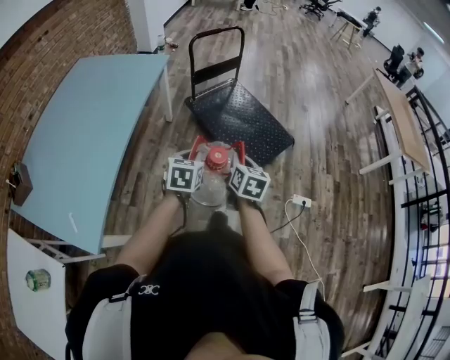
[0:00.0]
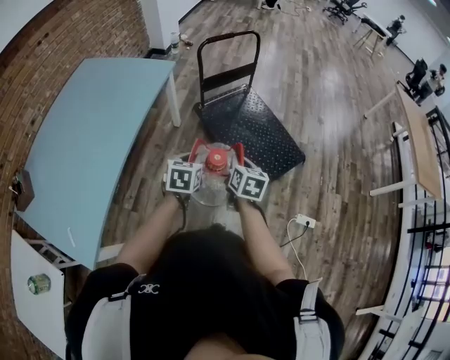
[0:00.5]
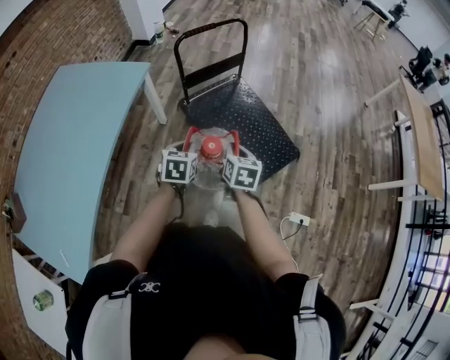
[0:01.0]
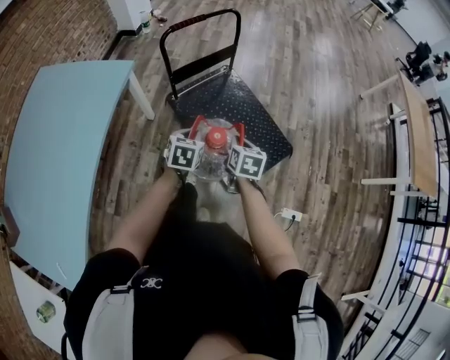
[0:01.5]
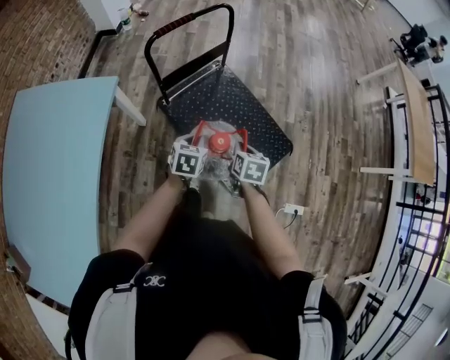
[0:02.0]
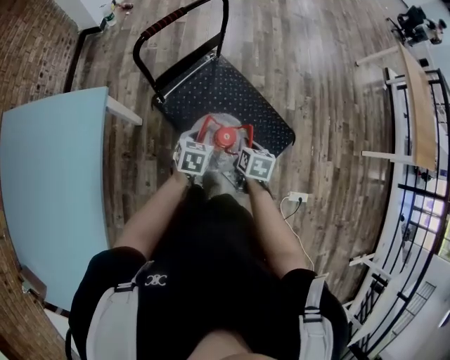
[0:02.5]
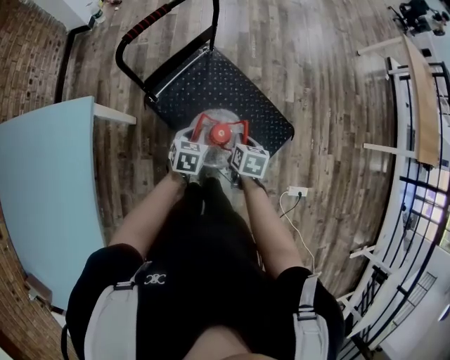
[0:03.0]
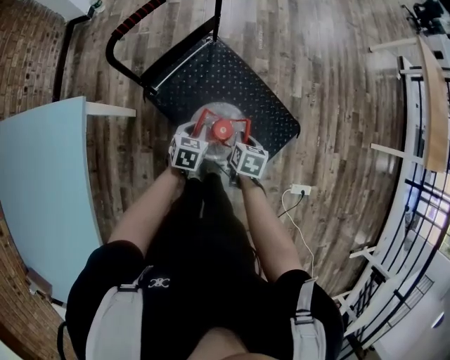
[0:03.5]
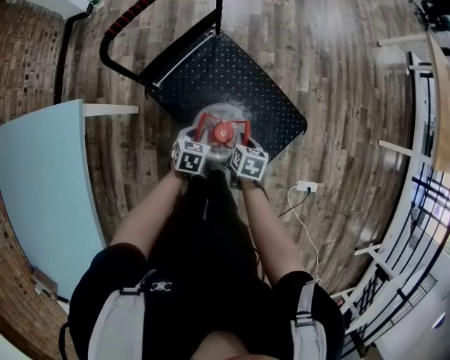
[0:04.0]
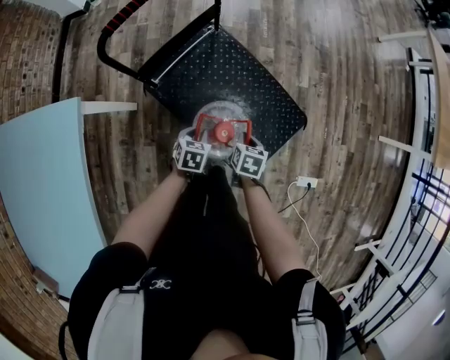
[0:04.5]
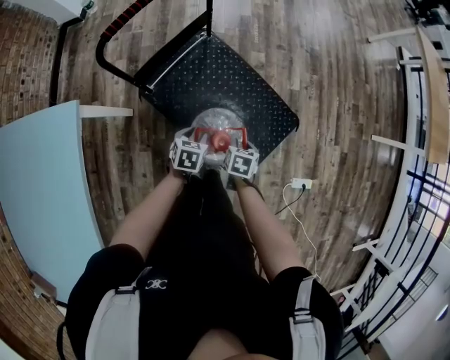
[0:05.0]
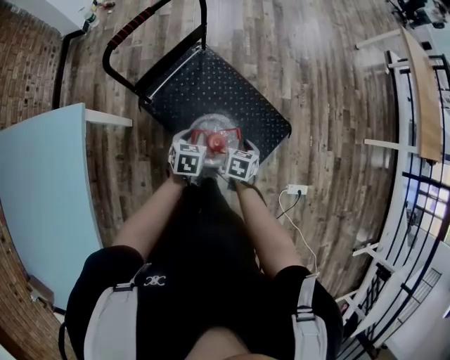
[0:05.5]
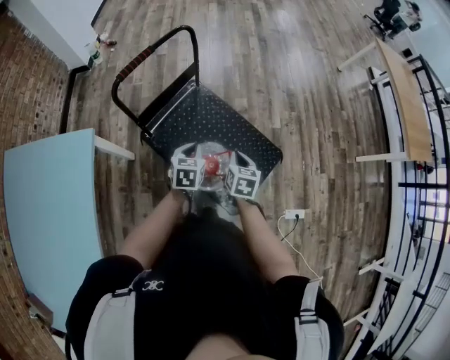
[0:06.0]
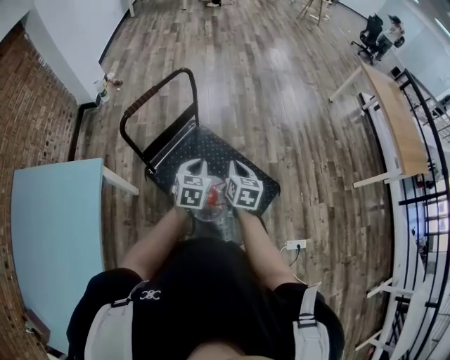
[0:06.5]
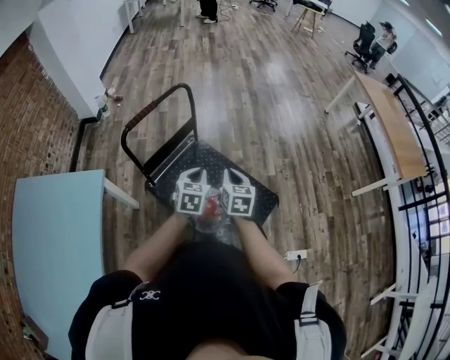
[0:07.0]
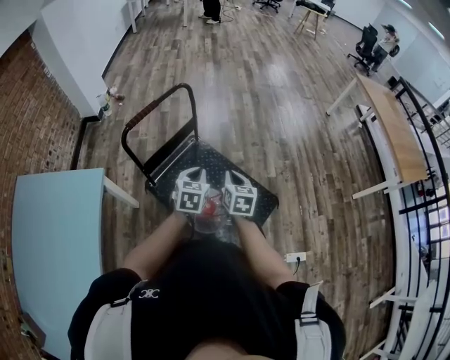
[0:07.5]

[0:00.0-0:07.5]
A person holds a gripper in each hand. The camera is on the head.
0:00.0 to 0:02.0: The two grippers travel together, forward, roughly 40 cm. The right gripper swivels roughly 20 degrees.
0:02.0 to 0:04.0: The grippers both shift downward and forward by some 15 cm.
0:04.0 to 0:05.5: The left gripper goes roughly 5 cm upward; the right gripper goes about 5 cm to the right.
0:05.5 to 0:07.5: Both grippers travel together upward, some 20 cm. The left gripper turns by roughly 20 degrees, and closes up. The right gripper changes its angle by approximately 30 degrees.

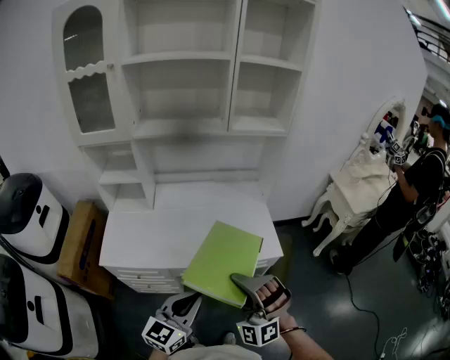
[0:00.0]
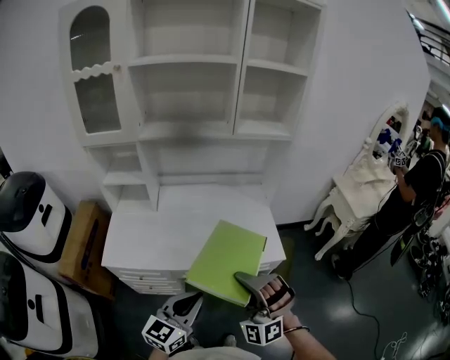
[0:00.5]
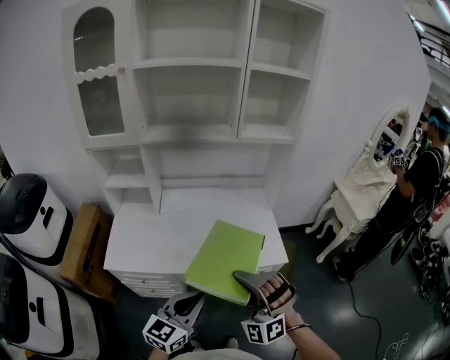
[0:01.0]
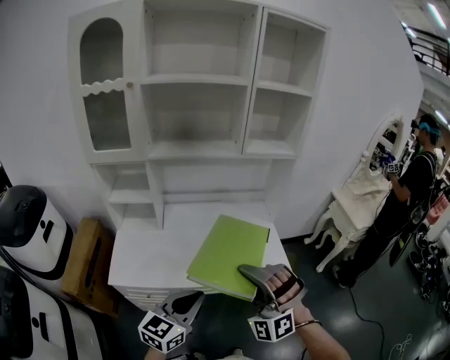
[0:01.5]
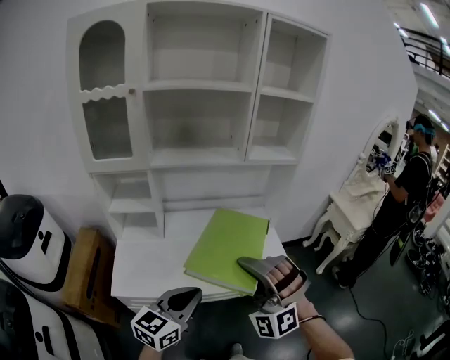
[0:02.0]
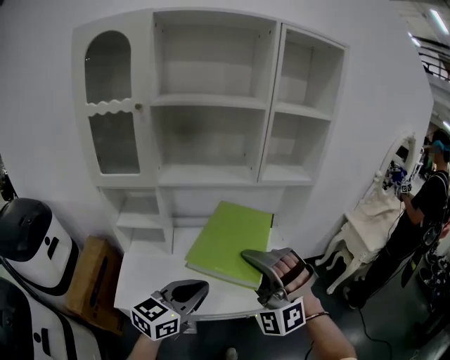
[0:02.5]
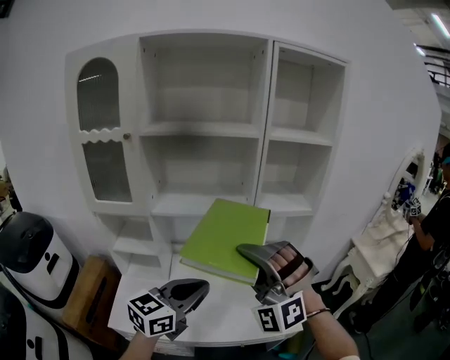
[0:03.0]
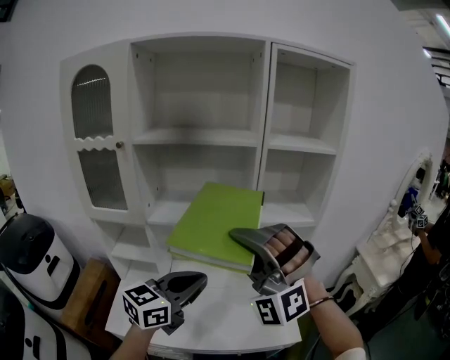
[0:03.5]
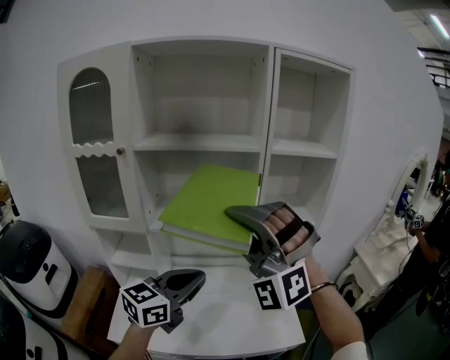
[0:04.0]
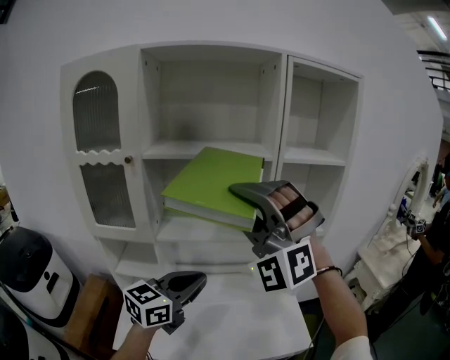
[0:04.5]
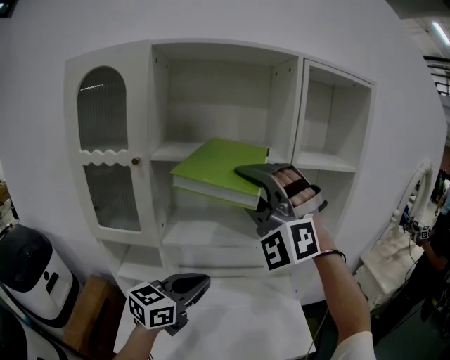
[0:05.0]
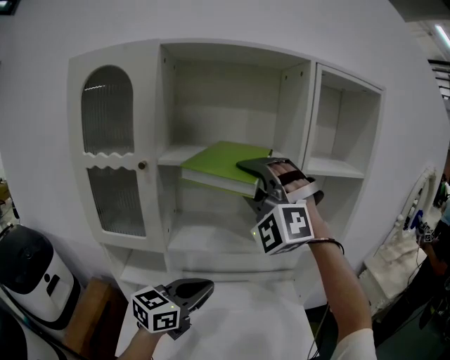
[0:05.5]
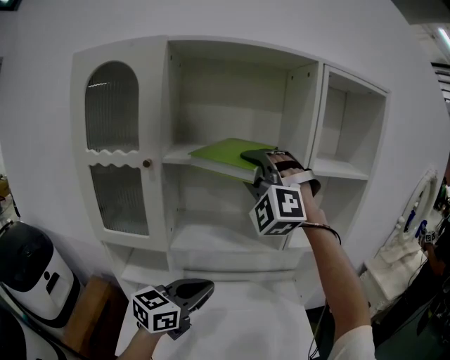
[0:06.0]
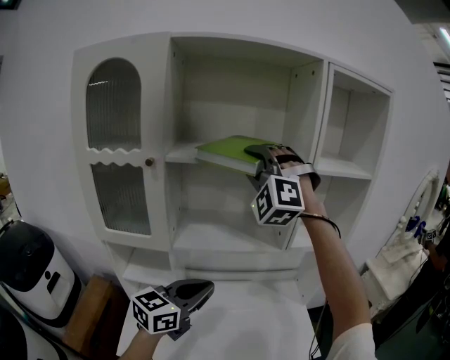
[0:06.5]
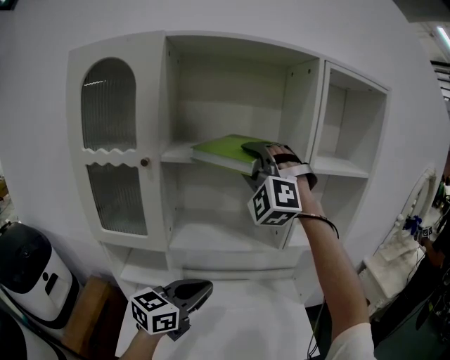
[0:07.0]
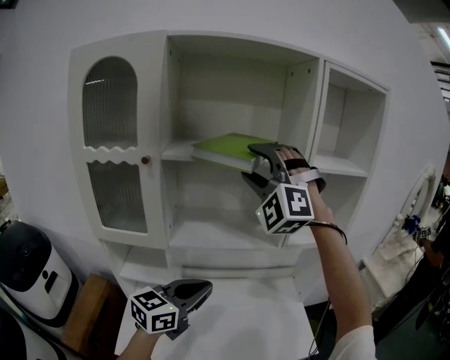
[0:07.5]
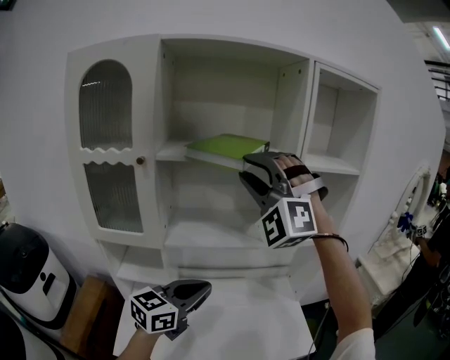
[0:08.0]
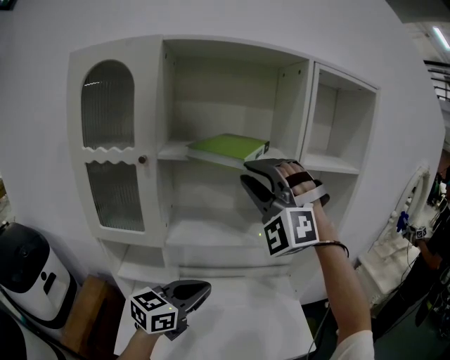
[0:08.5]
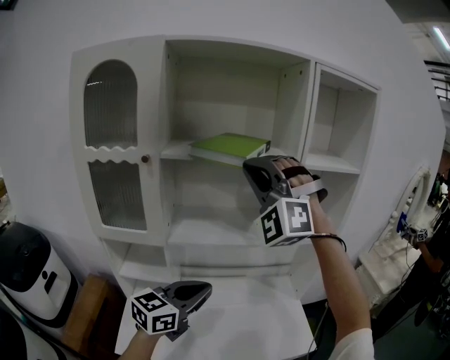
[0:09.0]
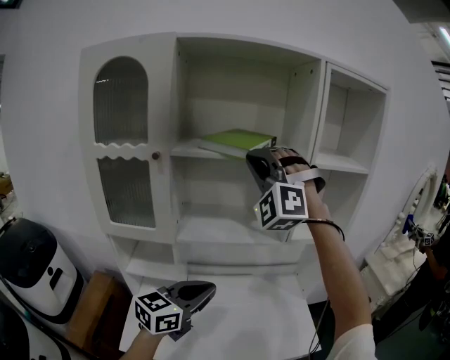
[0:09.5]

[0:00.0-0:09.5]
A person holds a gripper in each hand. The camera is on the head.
0:00.0 to 0:02.0: The left gripper ends up about 15 cm from where it was.
0:02.0 to 0:04.0: The left gripper shifts by about 30 cm.
0:04.0 to 0:05.5: The left gripper ends up approximately 10 cm from where it was.

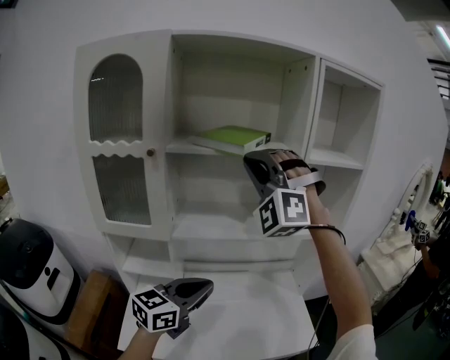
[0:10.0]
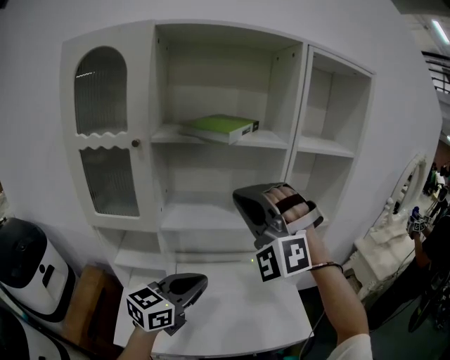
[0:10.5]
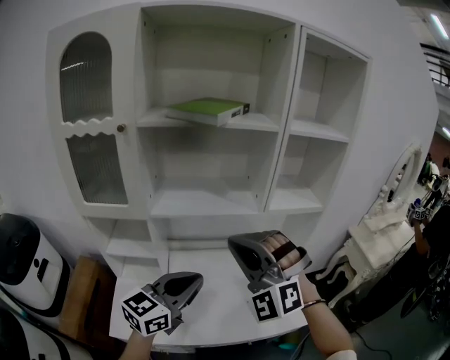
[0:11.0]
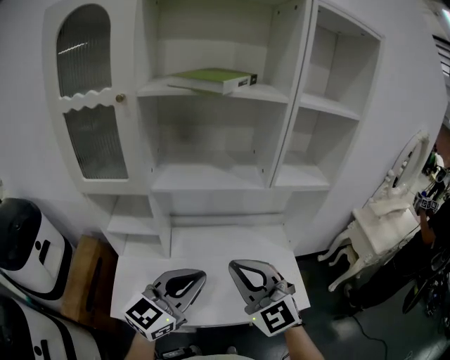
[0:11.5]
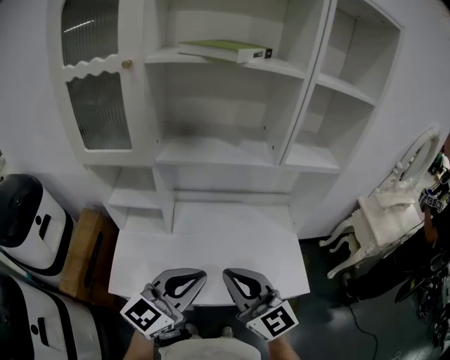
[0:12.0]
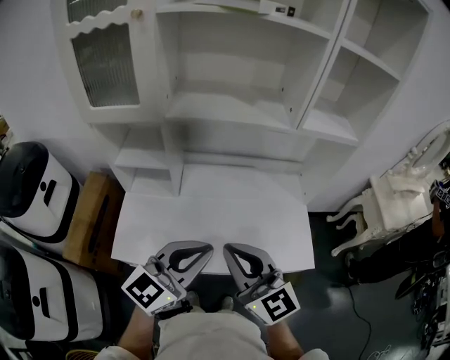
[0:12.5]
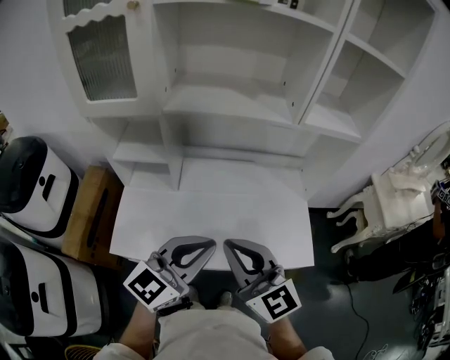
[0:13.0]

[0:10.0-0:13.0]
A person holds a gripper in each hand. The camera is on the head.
0:10.0 to 0:11.5: The left gripper changes place by approximately 10 cm.
0:11.5 to 0:13.0: The left gripper travels downward by roughly 5 cm.

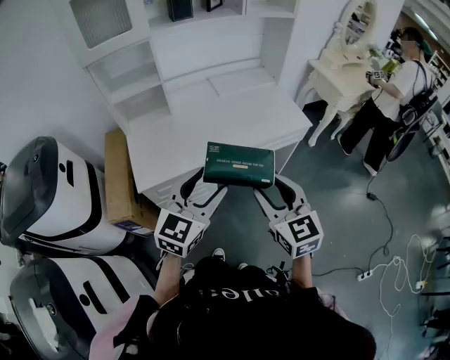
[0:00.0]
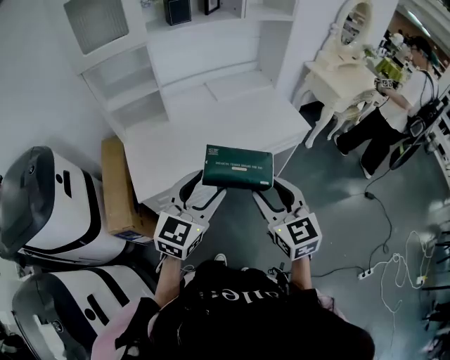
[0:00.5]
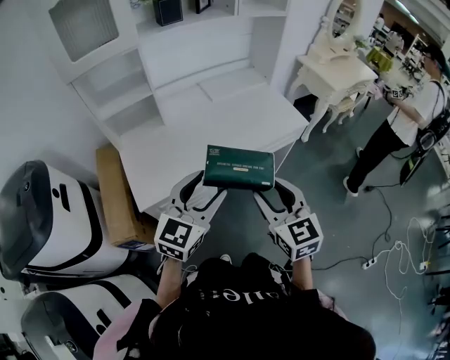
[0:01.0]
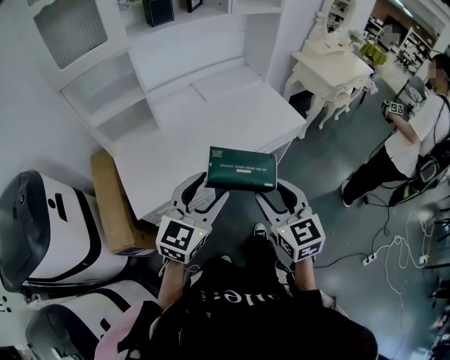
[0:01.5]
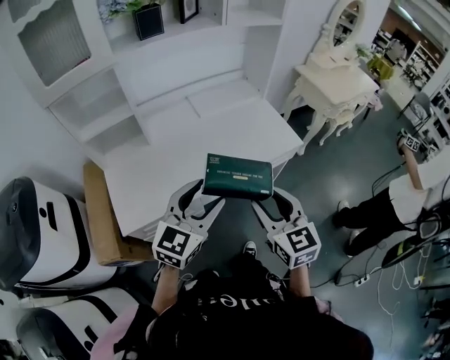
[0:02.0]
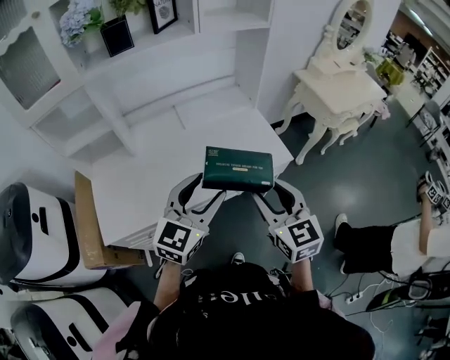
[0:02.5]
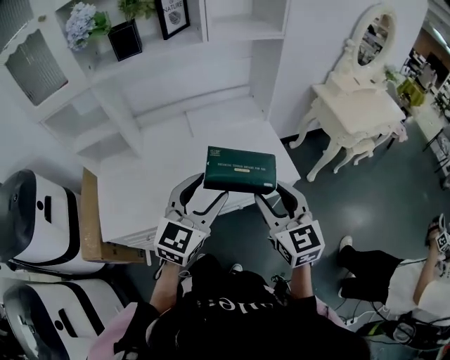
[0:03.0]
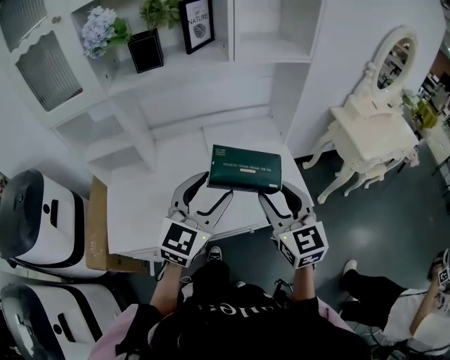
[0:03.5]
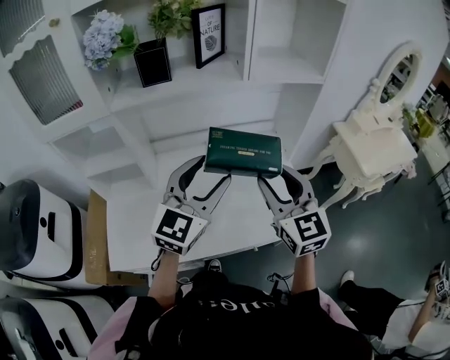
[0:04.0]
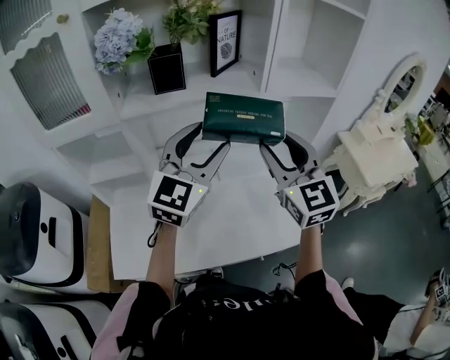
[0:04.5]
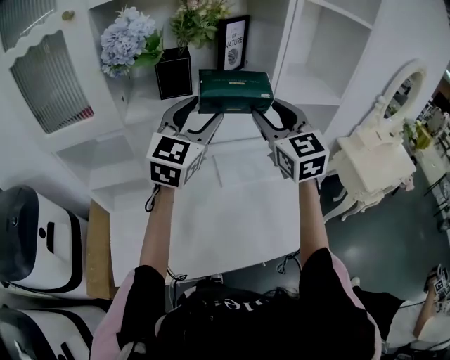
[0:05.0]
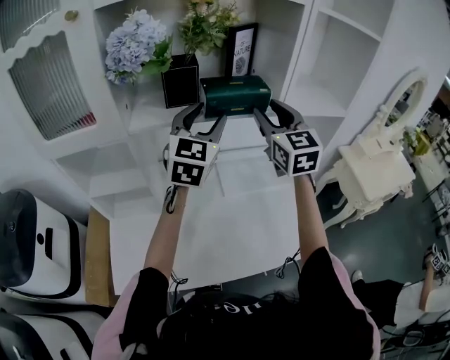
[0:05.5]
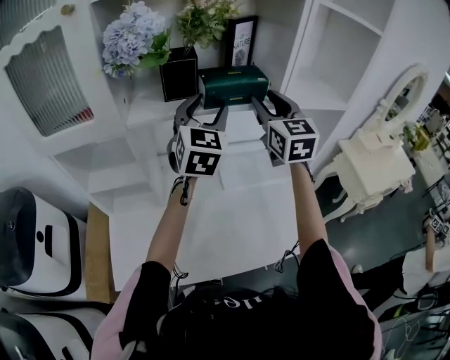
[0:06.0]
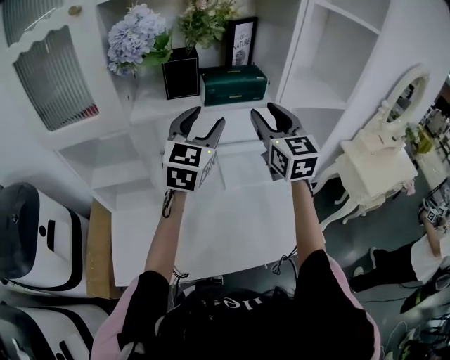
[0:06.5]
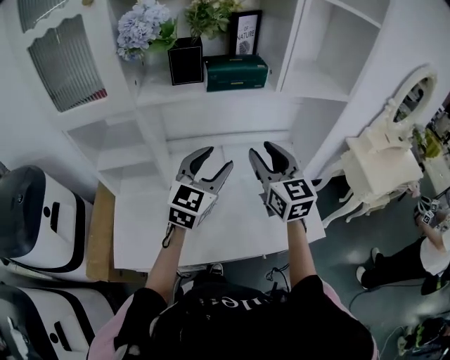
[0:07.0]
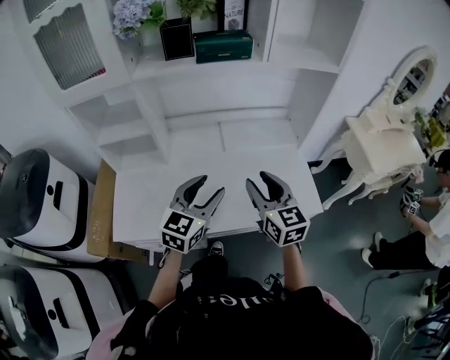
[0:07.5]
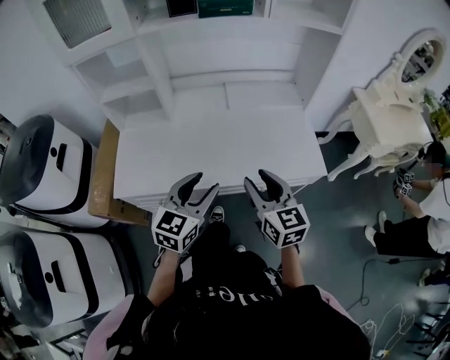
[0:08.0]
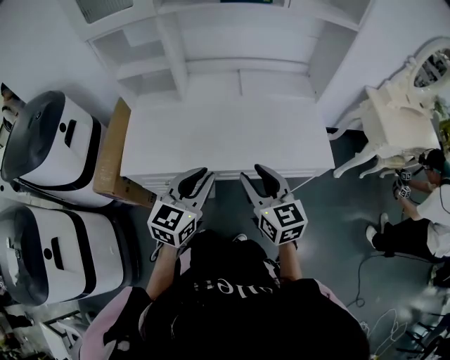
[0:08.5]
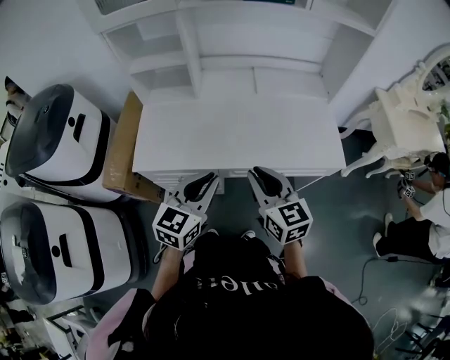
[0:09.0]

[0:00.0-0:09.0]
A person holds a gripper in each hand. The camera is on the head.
0:00.0 to 0:02.0: The two grippers go roughly 15 cm forward.
0:02.0 to 0:04.5: Both grippers move forward and upward, roughly 40 cm. The left gripper swivels about 30 degrees. Meanwhile the right gripper changes its angle by approximately 30 degrees.
0:04.5 to 0:07.0: Both grippers move downward, approximately 10 cm. The right gripper reaches roughly 20 cm forward, then returns. Meanwhile the left gripper moves about 15 cm forward and comes back.
0:07.0 to 0:09.0: The left gripper is displaced backward by some 35 cm, turns by roughly 20 degrees, and closes its fingers; the right gripper moves backward and downward, some 35 cm, changes its angle by approximately 20 degrees, and closes.
